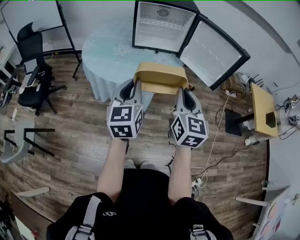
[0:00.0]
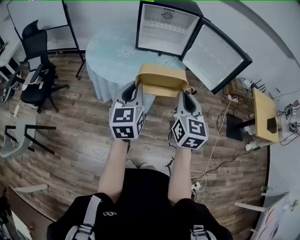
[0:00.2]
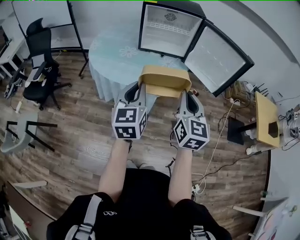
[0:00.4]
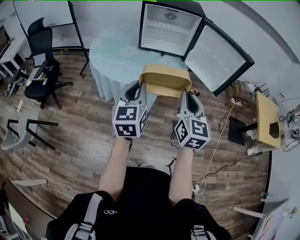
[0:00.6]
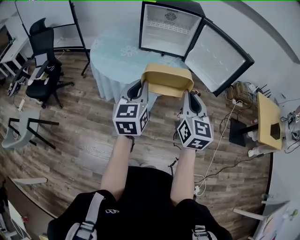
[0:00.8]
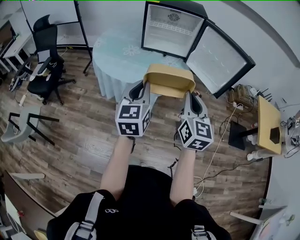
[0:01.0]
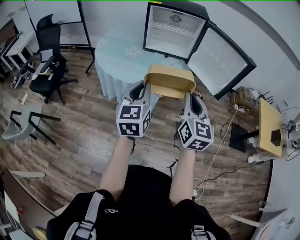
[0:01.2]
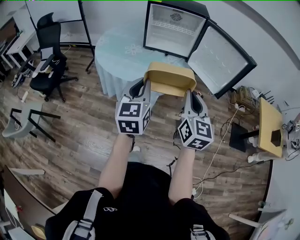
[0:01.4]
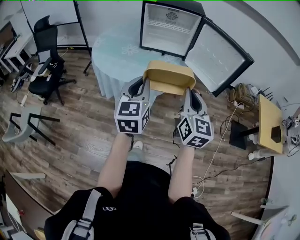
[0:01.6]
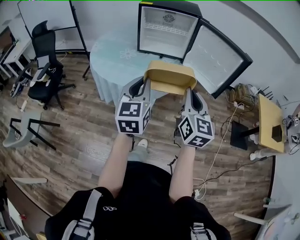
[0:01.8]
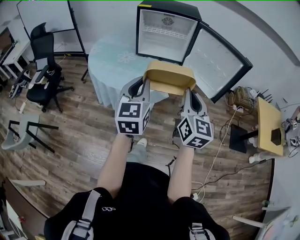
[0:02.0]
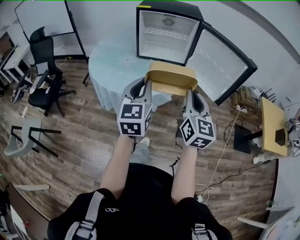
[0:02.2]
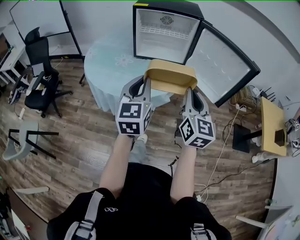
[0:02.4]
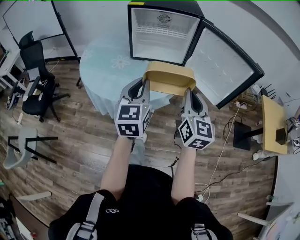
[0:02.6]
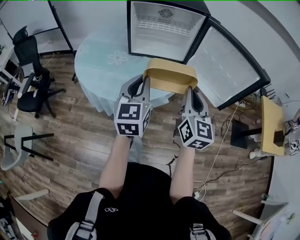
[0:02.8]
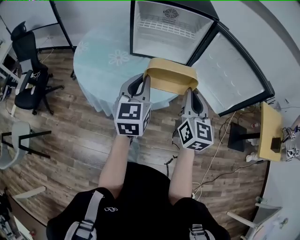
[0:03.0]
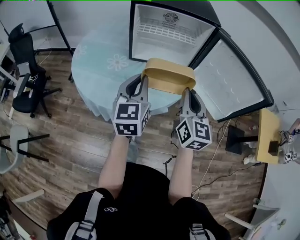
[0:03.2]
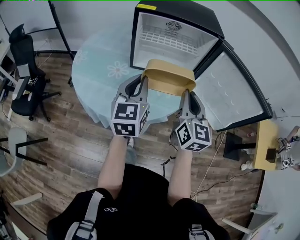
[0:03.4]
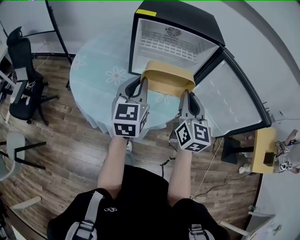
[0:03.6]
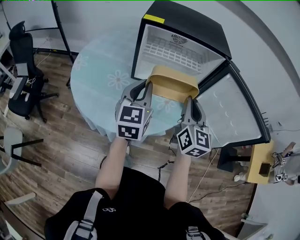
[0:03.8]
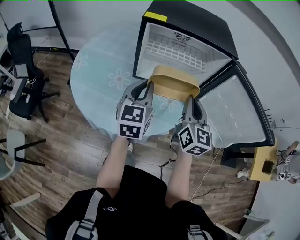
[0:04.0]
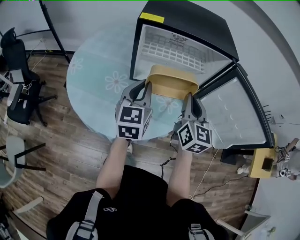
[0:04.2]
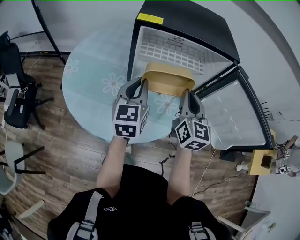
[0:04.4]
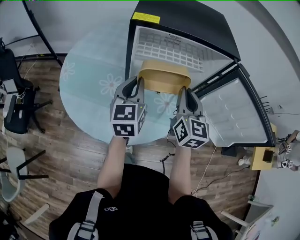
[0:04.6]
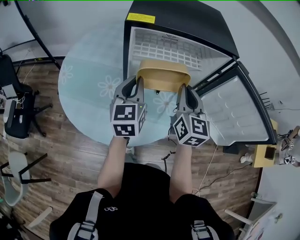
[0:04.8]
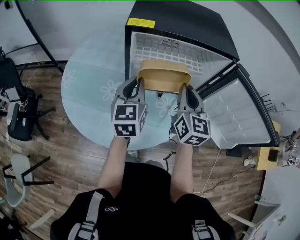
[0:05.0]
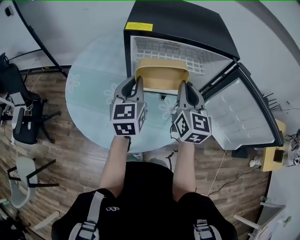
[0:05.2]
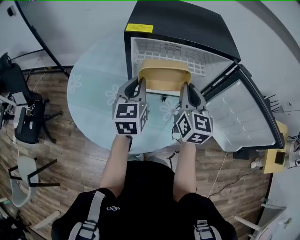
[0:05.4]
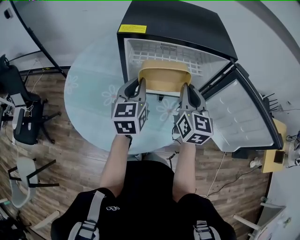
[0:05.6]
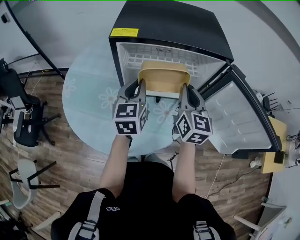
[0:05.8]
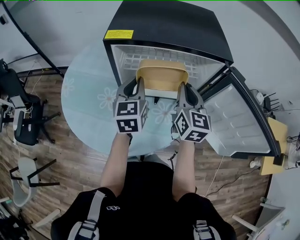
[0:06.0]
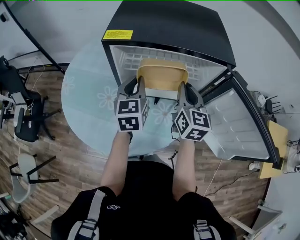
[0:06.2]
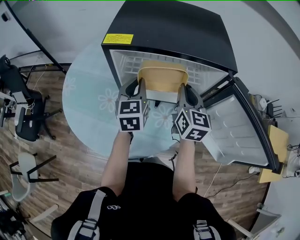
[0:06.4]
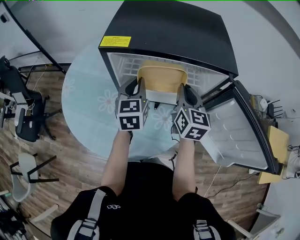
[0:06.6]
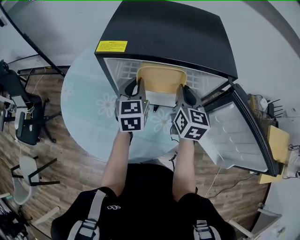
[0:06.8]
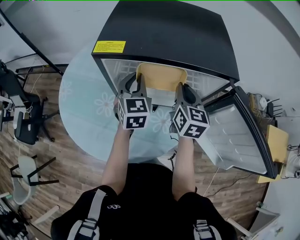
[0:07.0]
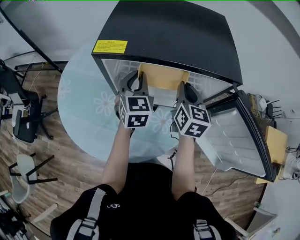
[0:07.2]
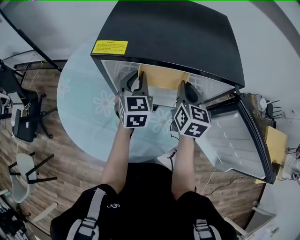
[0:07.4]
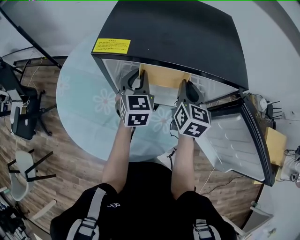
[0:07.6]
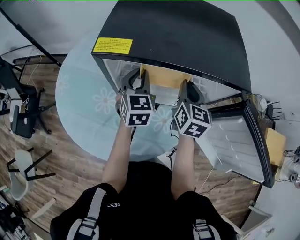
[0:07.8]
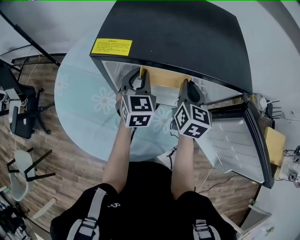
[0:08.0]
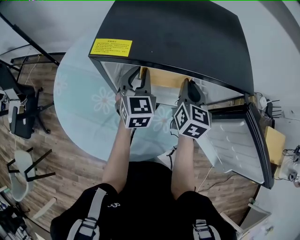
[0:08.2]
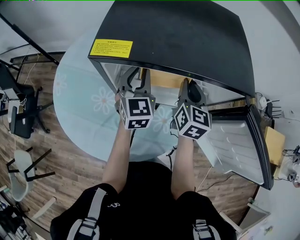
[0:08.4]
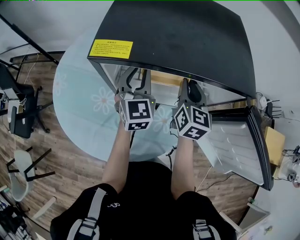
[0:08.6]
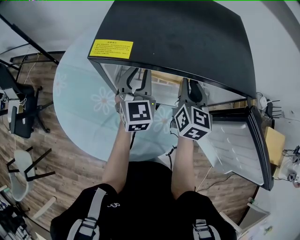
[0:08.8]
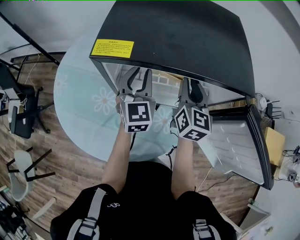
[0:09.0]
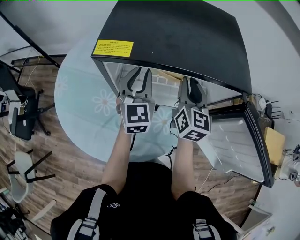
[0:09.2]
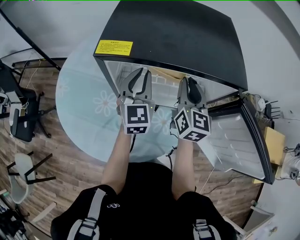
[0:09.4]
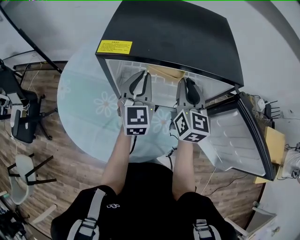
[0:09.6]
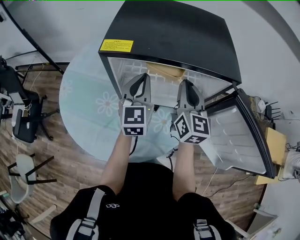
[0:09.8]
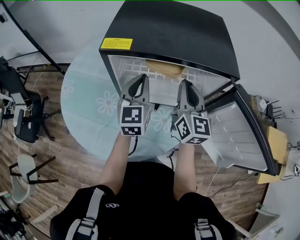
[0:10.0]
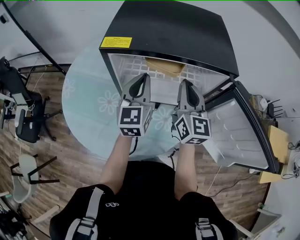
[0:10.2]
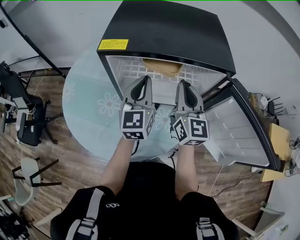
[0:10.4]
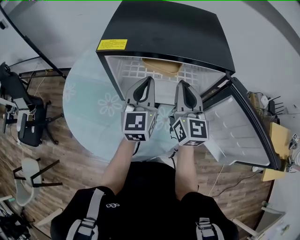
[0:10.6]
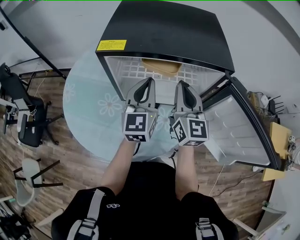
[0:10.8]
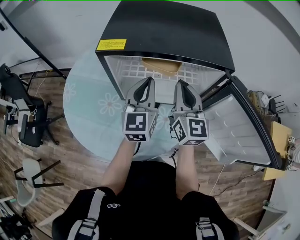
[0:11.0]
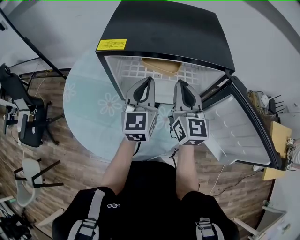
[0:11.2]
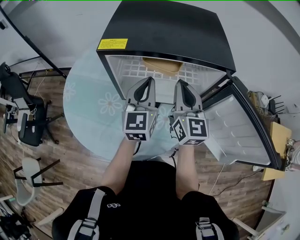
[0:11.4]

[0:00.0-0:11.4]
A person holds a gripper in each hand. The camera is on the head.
0:00.0 to 0:01.4: Both grippers travel together to the right, about 5 cm.
0:01.4 to 0:02.8: The grippers both shift forward by about 20 cm.
0:02.8 to 0:04.2: The two grippers go some 25 cm forward.
0:04.2 to 0:05.6: The grippers both shift forward by approximately 10 cm.
0:05.6 to 0:07.2: The two grippers go about 10 cm forward.
0:07.2 to 0:08.6: The grippers stay close to where they were, moving slightly.
0:08.6 to 0:10.0: The right gripper shifts some 10 cm upward and backward, while the left gripper moves backward, some 5 cm, and closes.
0:10.0 to 0:11.4: The grippers stay close to where they were, moving slightly.

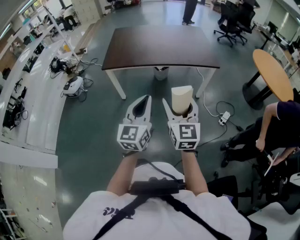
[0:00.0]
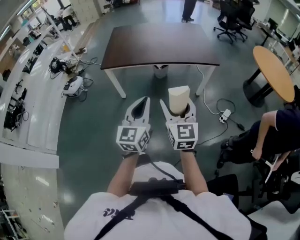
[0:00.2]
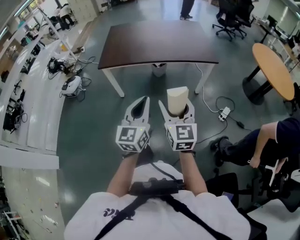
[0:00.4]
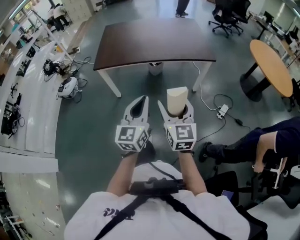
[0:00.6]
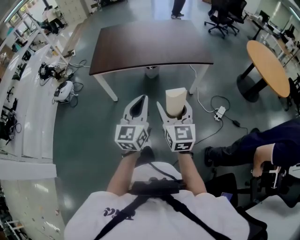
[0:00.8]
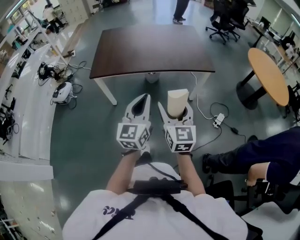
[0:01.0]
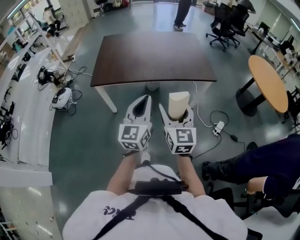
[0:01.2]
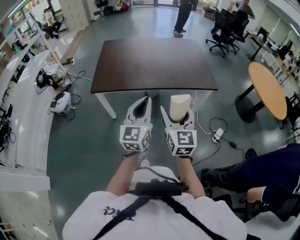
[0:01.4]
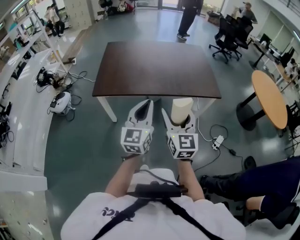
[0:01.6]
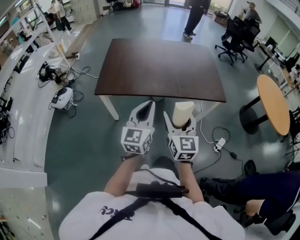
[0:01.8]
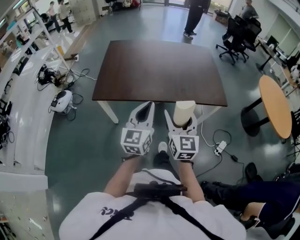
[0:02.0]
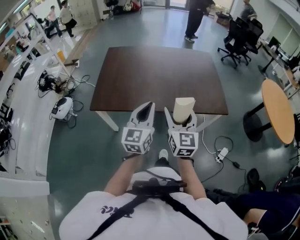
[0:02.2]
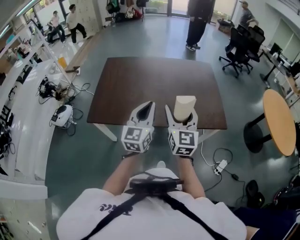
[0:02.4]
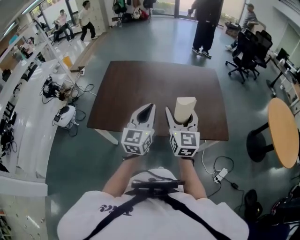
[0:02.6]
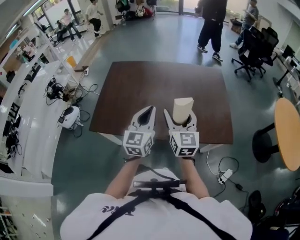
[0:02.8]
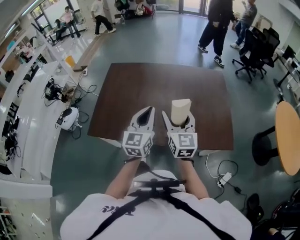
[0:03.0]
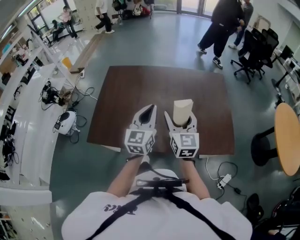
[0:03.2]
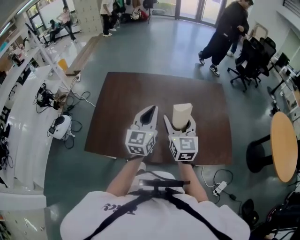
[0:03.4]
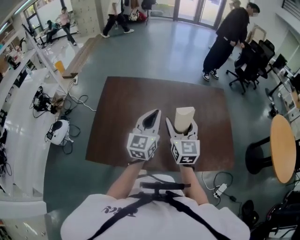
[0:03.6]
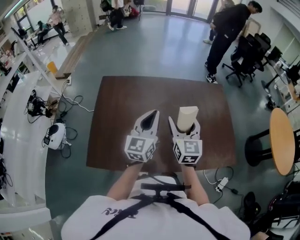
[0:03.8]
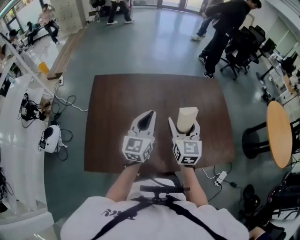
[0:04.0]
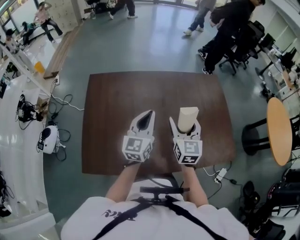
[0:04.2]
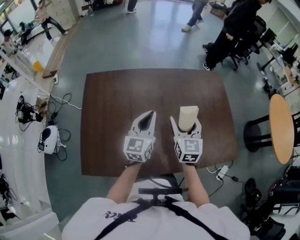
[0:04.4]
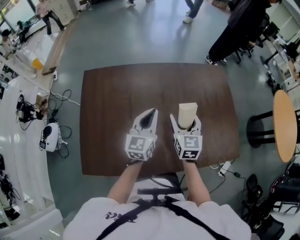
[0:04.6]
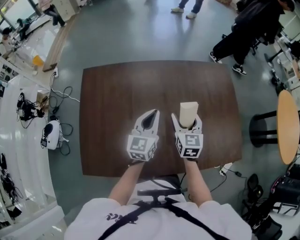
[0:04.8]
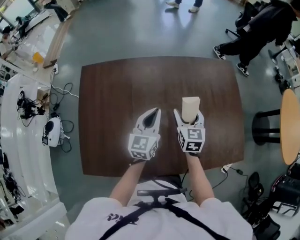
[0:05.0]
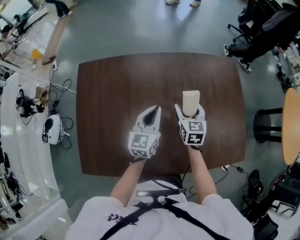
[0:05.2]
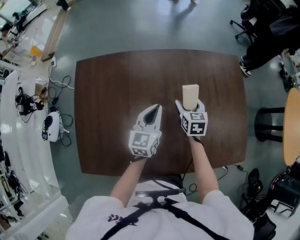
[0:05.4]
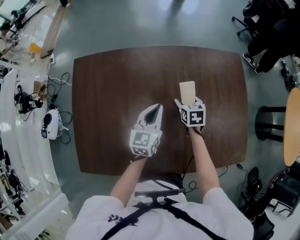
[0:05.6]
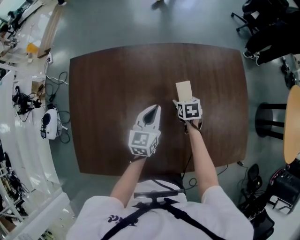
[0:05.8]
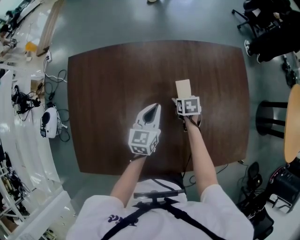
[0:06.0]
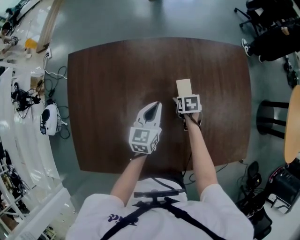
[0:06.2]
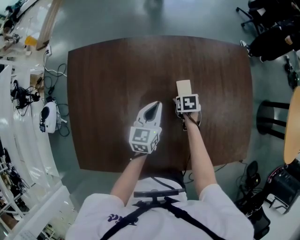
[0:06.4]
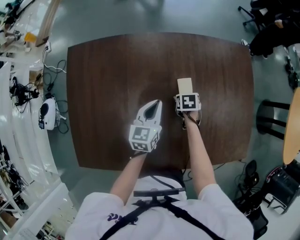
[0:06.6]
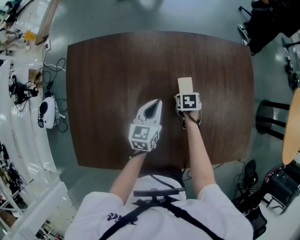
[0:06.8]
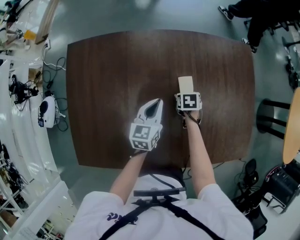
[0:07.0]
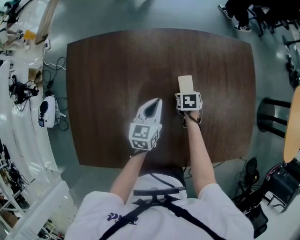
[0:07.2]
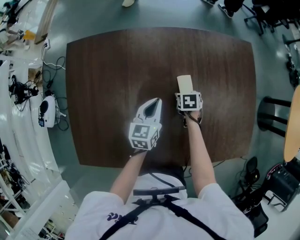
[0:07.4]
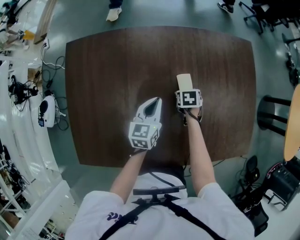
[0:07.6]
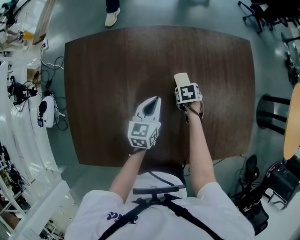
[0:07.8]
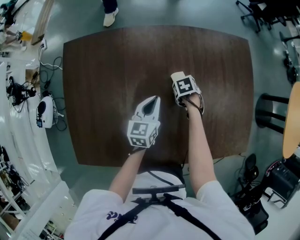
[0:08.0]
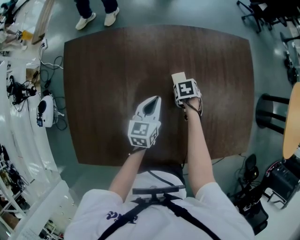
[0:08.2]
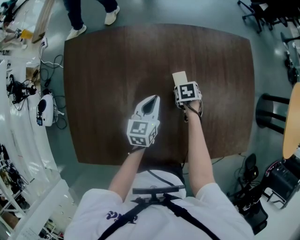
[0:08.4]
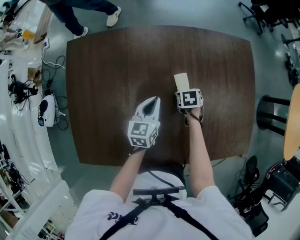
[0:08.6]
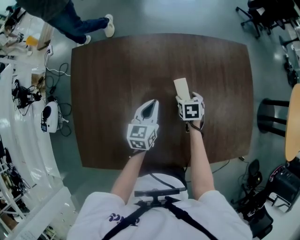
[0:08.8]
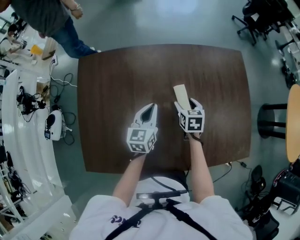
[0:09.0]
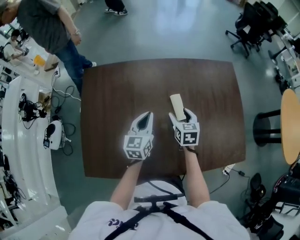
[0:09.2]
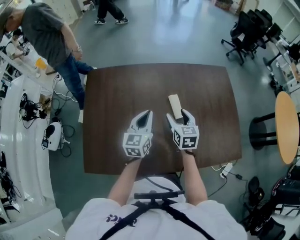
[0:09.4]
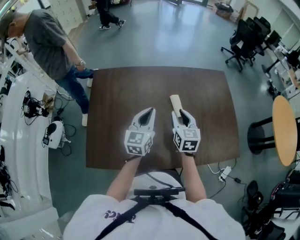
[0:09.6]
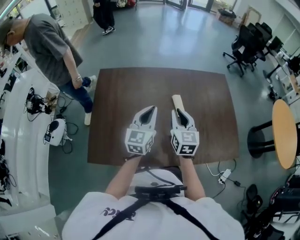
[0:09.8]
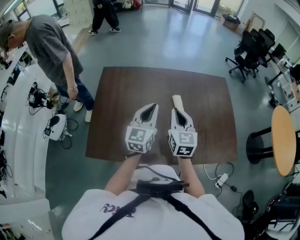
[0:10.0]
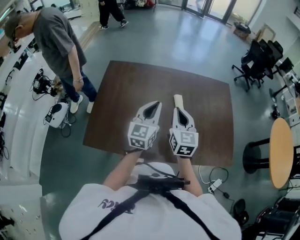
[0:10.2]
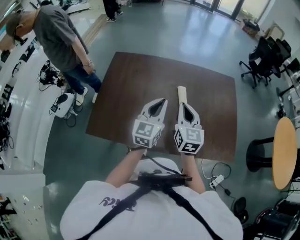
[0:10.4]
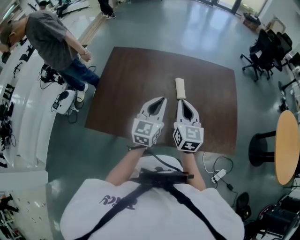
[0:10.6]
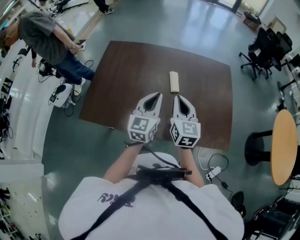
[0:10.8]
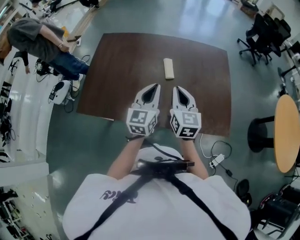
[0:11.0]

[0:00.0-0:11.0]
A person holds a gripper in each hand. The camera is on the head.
0:00.0 to 0:01.6: Both grippers move forward, about 25 cm.
0:01.6 to 0:03.2: The pair of grippers is taken forward, about 50 cm.
0:03.2 to 0:04.8: Both grippers travel together forward and downward, about 25 cm. The right gripper changes its angle by some 20 degrees.
0:04.8 to 0:06.2: The right gripper heads downward and forward, covering some 30 cm, and angles its fingers downward, by some 50 degrees, while the left gripper shifts approximately 15 cm downward and forward.
0:06.2 to 0:07.8: The grippers stay close to where they were, moving slightly.
0:07.8 to 0:09.4: The left gripper moves upward, roughly 15 cm. Meanwhile the right gripper shifts roughly 25 cm upward, and angles its fingers upward, by about 50 degrees.
0:09.4 to 0:11.0: The left gripper heads backward, to the right and upward, covering some 25 cm. The right gripper shifts roughly 25 cm backward and upward, turns by about 20 degrees, and closes up.

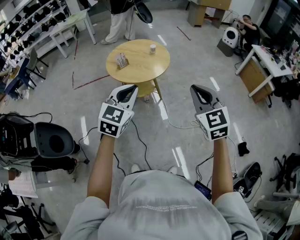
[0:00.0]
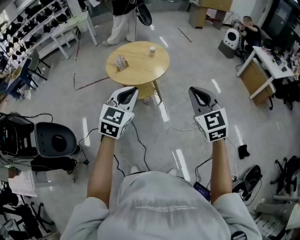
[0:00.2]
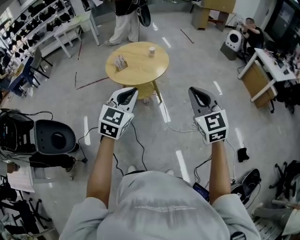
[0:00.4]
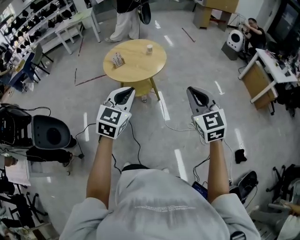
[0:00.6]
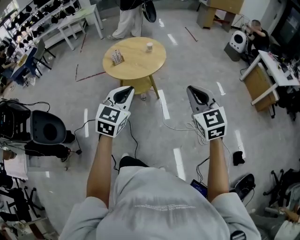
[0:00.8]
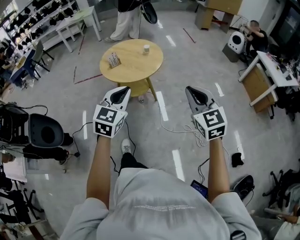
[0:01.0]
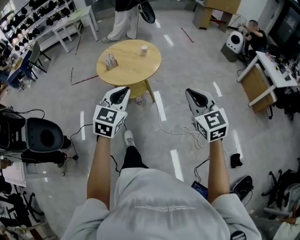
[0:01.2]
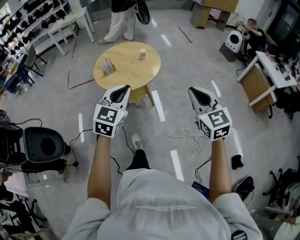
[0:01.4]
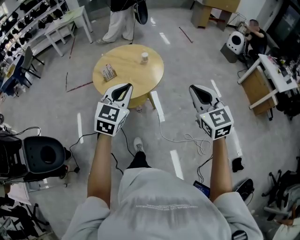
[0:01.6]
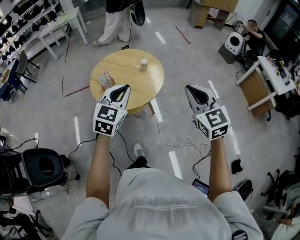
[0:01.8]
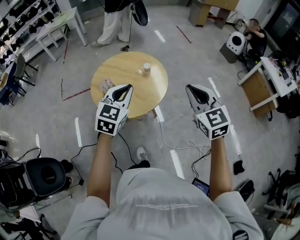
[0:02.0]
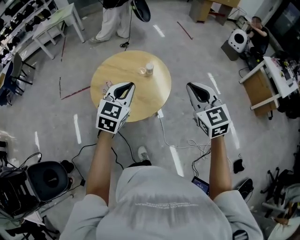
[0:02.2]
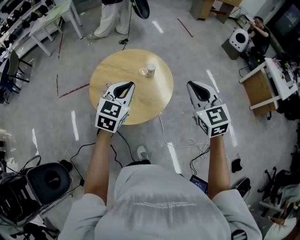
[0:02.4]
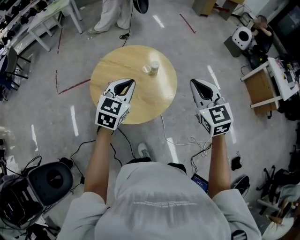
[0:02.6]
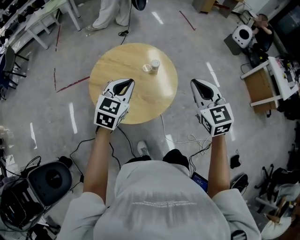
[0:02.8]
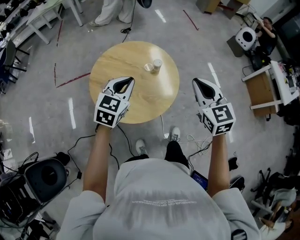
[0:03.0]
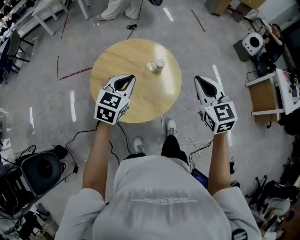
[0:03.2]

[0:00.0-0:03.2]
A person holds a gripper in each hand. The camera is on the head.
0:00.0 to 0:01.6: The left gripper goes about 20 cm forward, while the right gripper shifts some 20 cm forward and to the right.
0:01.6 to 0:03.2: The grippers both shift forward by some 30 cm.
